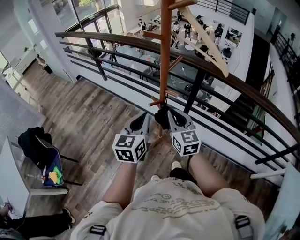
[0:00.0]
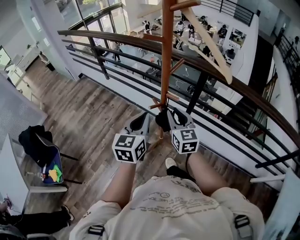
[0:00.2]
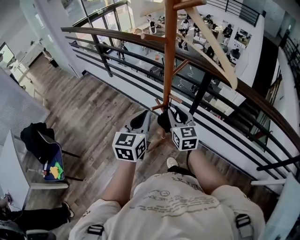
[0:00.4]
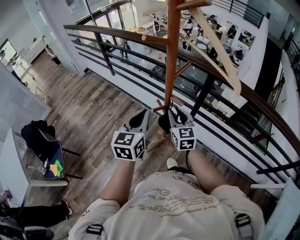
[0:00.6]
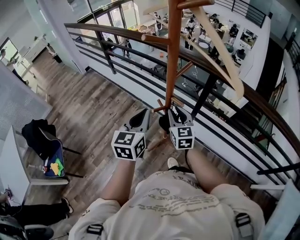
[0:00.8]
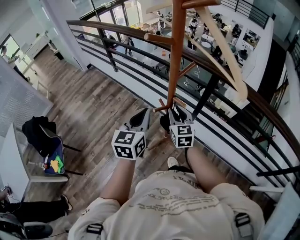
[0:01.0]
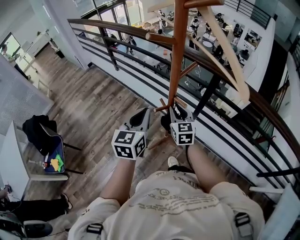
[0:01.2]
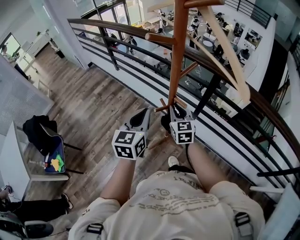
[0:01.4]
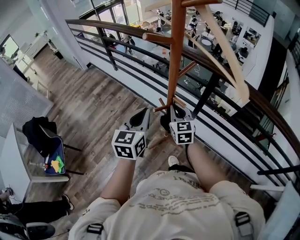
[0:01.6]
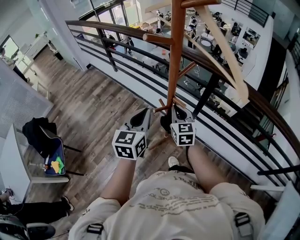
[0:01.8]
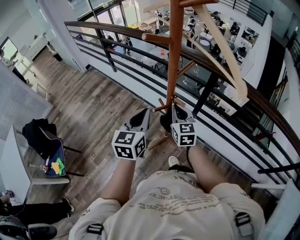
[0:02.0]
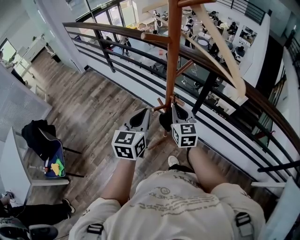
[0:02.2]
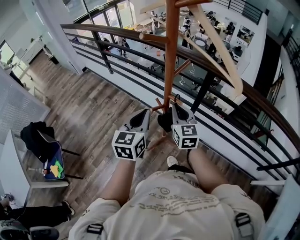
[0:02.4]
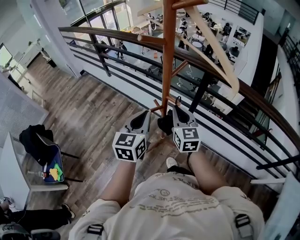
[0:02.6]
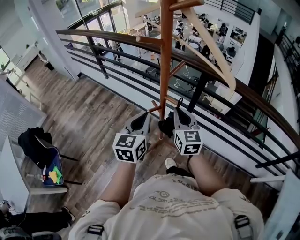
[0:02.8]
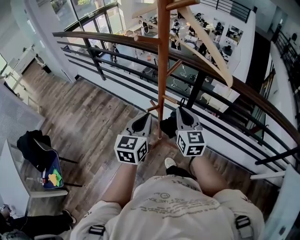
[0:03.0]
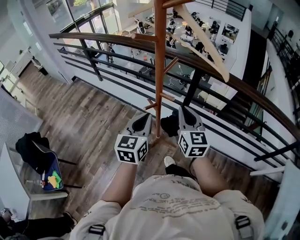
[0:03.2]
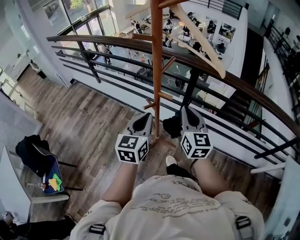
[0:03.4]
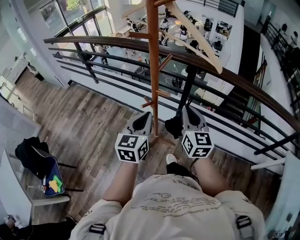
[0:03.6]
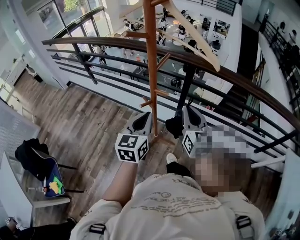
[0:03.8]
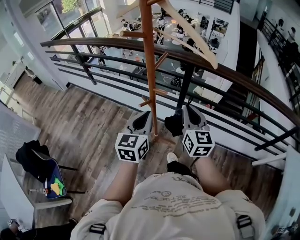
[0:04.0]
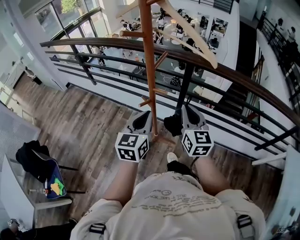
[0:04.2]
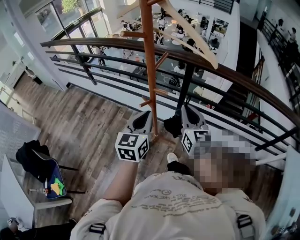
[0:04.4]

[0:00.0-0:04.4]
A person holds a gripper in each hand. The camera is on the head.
0:00.0 to 0:01.4: The left gripper travels forward by approximately 5 cm. Meanwhile the right gripper is displaced forward and downward by some 15 cm.
0:01.4 to 0:03.0: The right gripper moves upward and backward, approximately 10 cm.
0:03.0 to 0:04.4: The right gripper moves to the right, about 5 cm.

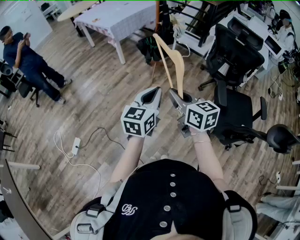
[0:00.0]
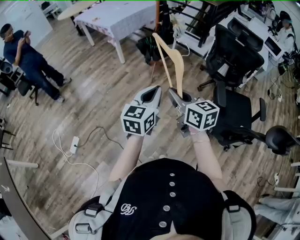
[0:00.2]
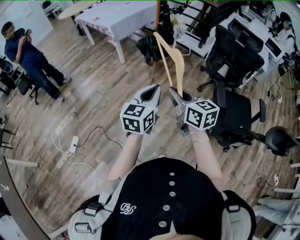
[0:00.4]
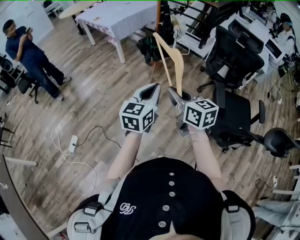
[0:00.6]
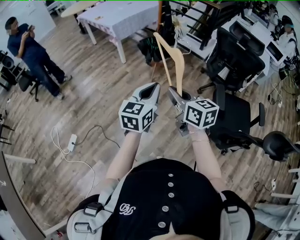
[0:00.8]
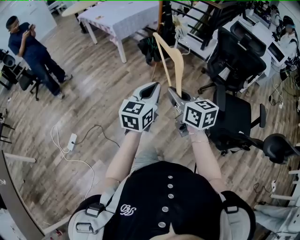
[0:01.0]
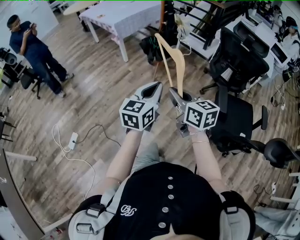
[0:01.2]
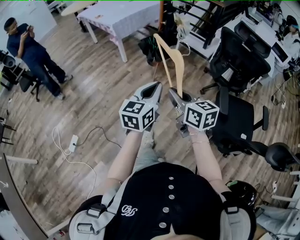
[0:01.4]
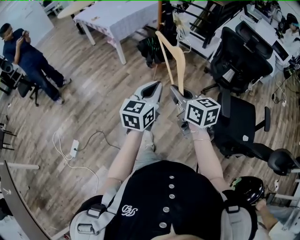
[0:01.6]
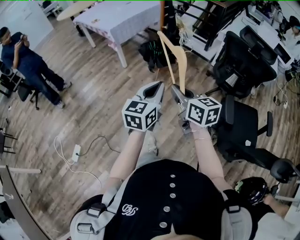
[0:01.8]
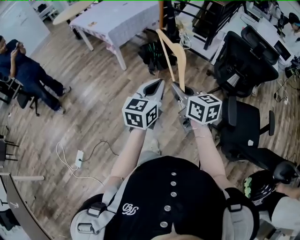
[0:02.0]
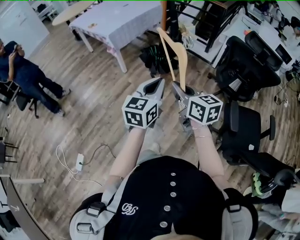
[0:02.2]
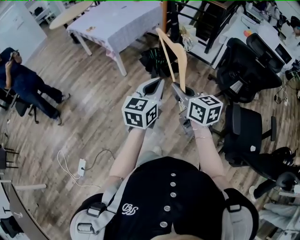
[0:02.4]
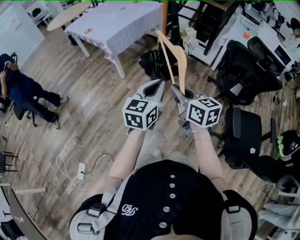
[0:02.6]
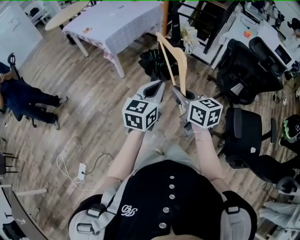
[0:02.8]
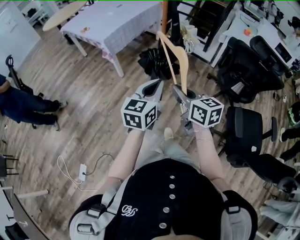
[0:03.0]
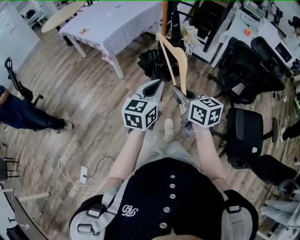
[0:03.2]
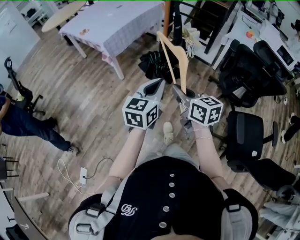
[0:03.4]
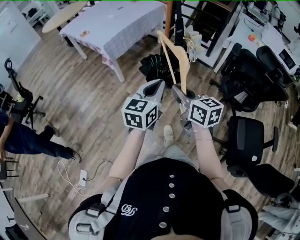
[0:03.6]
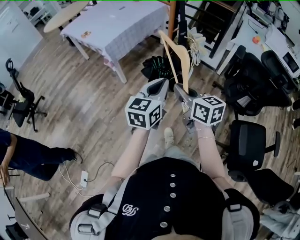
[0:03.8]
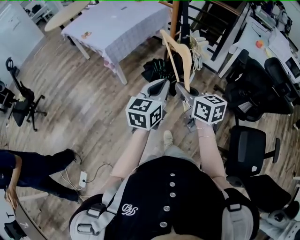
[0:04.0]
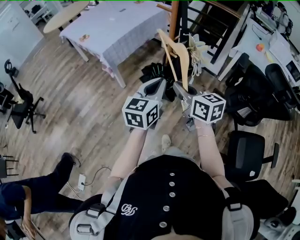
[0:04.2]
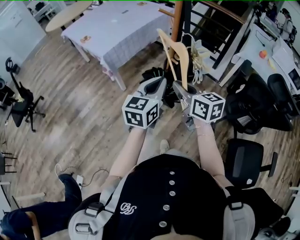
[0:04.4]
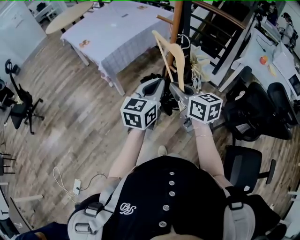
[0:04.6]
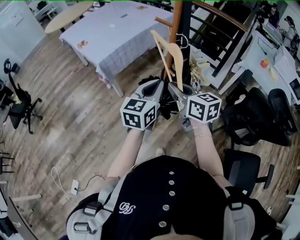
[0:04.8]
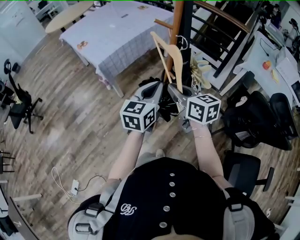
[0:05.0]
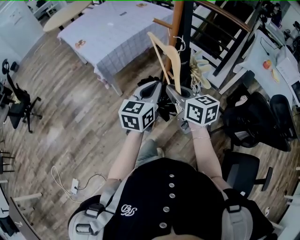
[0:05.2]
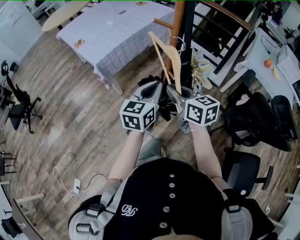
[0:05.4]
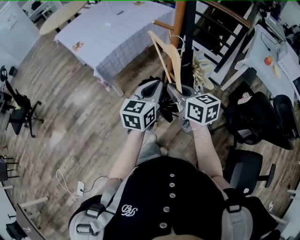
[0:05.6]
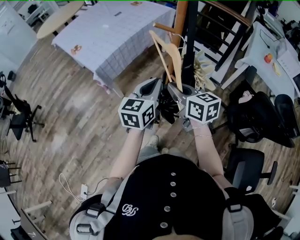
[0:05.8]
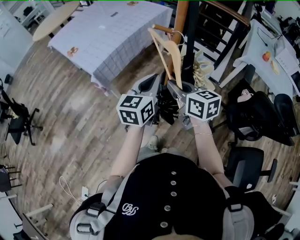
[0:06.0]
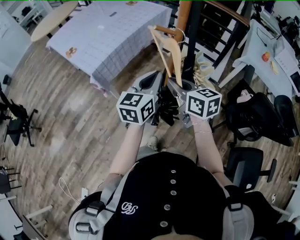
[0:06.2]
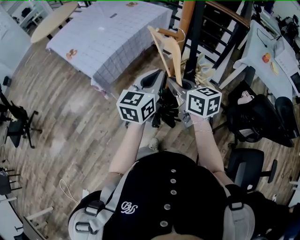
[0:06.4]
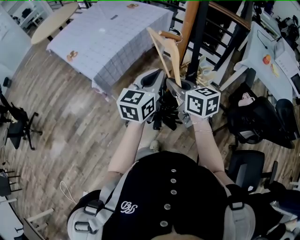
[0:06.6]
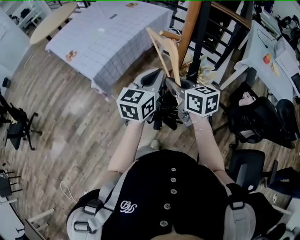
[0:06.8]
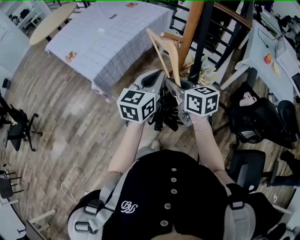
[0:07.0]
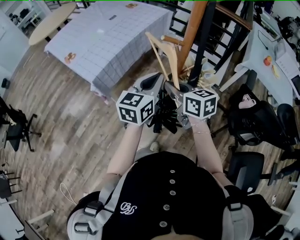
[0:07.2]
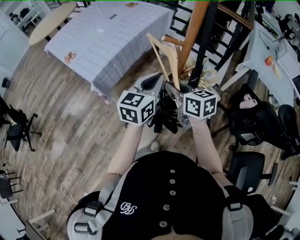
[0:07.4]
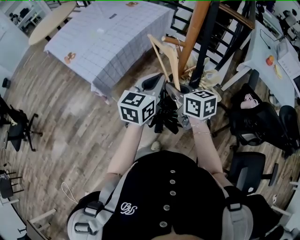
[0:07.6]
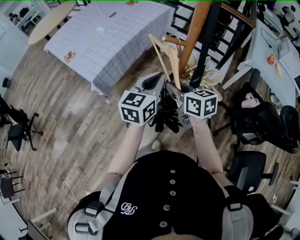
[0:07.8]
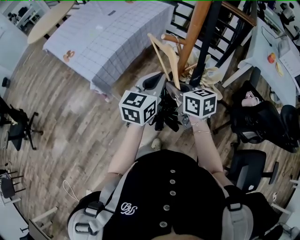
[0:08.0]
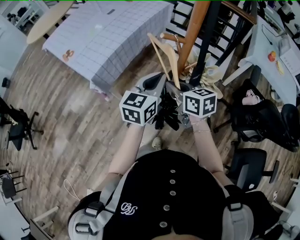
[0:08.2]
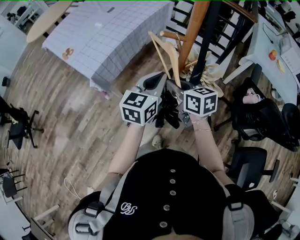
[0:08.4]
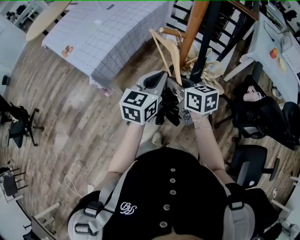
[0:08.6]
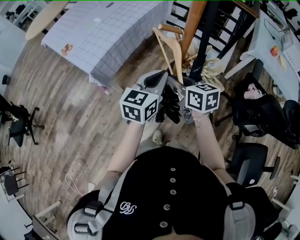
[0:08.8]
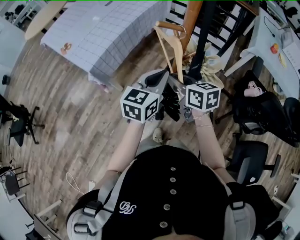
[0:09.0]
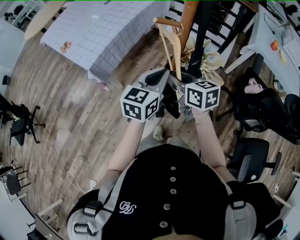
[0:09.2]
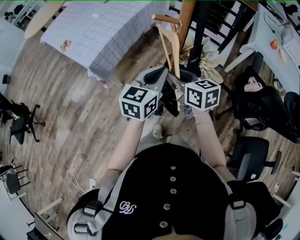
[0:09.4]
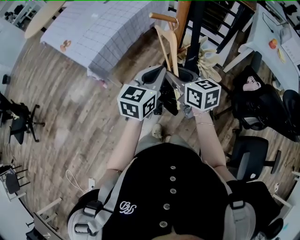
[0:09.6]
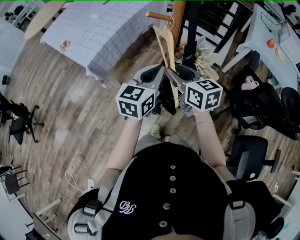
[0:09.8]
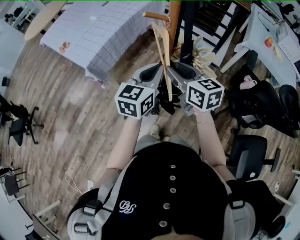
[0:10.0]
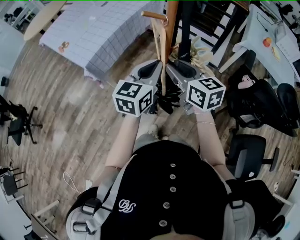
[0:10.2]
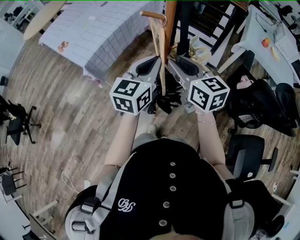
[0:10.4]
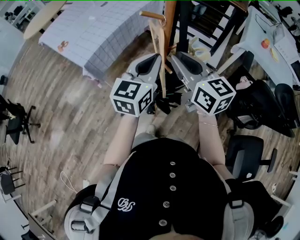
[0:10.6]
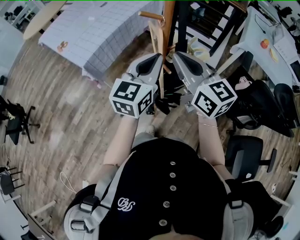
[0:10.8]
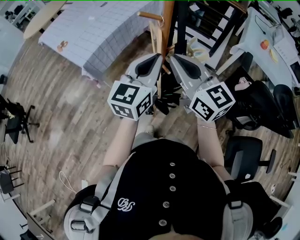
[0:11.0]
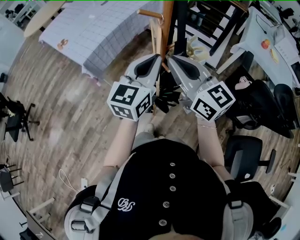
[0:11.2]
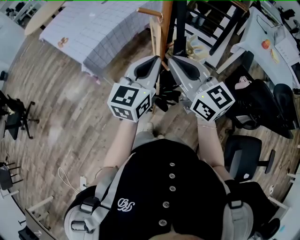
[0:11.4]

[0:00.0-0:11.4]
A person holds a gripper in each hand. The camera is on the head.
0:00.0 to 0:01.4: The grippers both shift forward by some 5 cm.
0:01.4 to 0:02.8: Both grippers move forward, some 25 cm.
0:02.8 to 0:04.2: Both grippers travel together forward, some 20 cm.
0:04.2 to 0:05.6: The two grippers go about 15 cm forward.
0:05.6 to 0:07.2: The grippers both shift forward by about 10 cm.
0:07.2 to 0:08.6: The grippers make only small movements.
0:08.6 to 0:10.0: The left gripper ends up about 5 cm from where it was. The right gripper changes place by roughly 10 cm, and opens its fingers.
0:10.0 to 0:11.4: The right gripper is displaced upward and backward by roughly 10 cm, swivels approximately 20 degrees, and closes up; the left gripper goes roughly 5 cm upward.

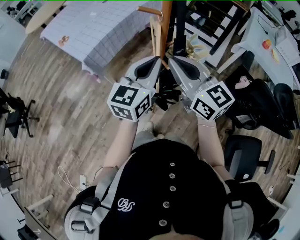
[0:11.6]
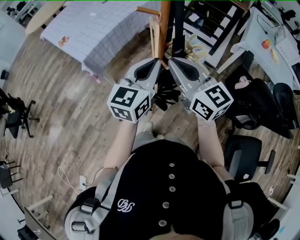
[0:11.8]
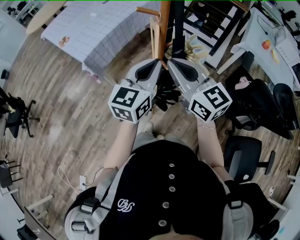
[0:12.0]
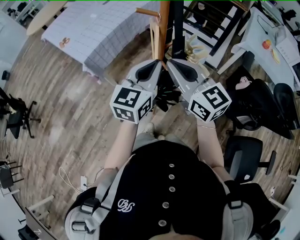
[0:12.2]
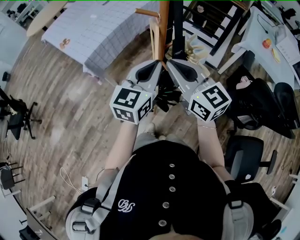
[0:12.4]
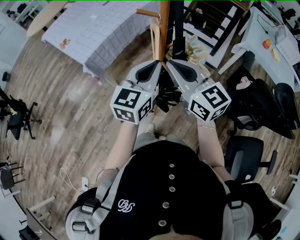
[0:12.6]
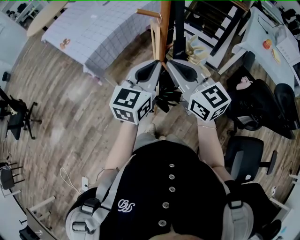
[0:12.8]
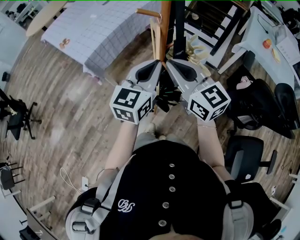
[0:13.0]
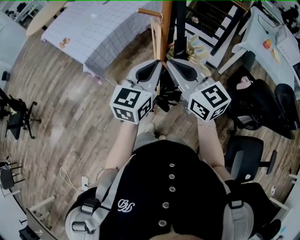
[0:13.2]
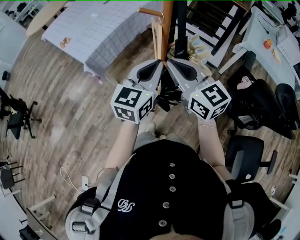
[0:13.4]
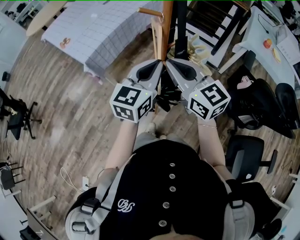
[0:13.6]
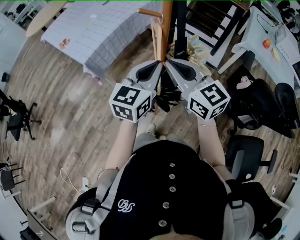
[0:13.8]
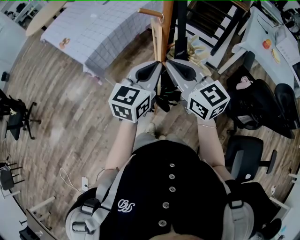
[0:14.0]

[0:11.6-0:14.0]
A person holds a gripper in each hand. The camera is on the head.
0:11.6 to 0:12.8: The grippers make only small movements.
0:12.8 to 0:14.0: Both grippers stay about where they are.

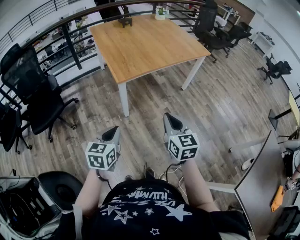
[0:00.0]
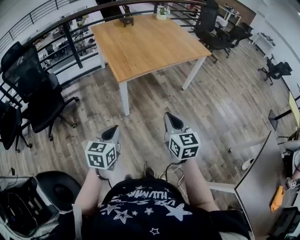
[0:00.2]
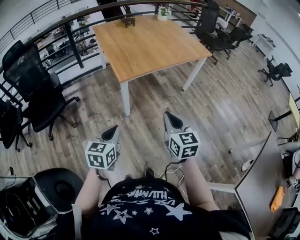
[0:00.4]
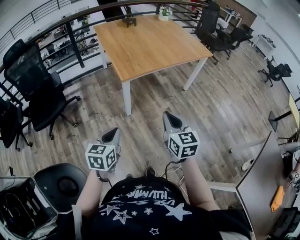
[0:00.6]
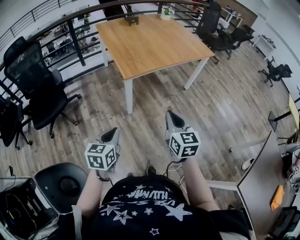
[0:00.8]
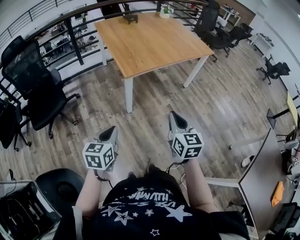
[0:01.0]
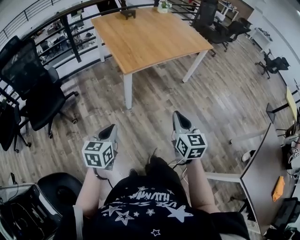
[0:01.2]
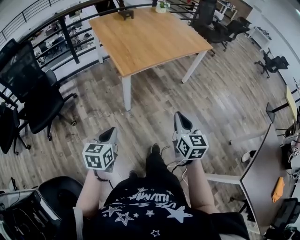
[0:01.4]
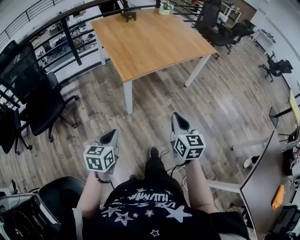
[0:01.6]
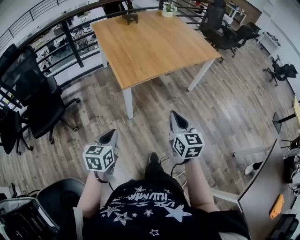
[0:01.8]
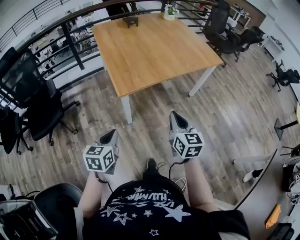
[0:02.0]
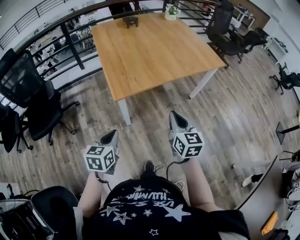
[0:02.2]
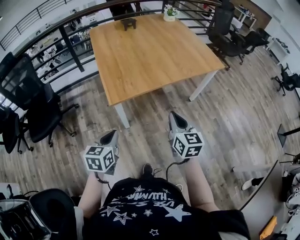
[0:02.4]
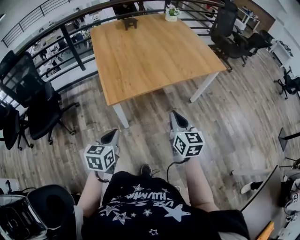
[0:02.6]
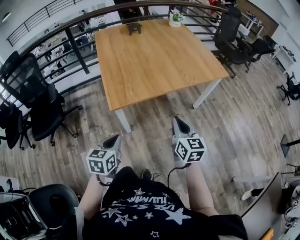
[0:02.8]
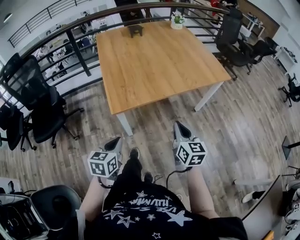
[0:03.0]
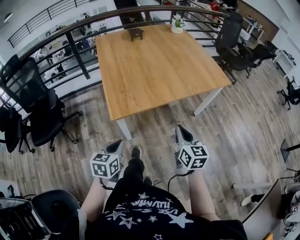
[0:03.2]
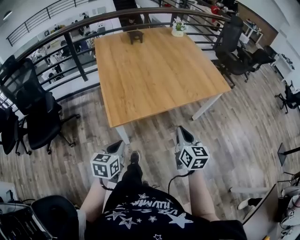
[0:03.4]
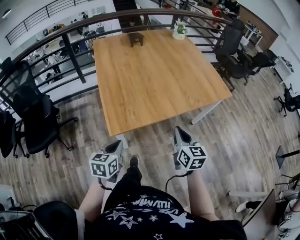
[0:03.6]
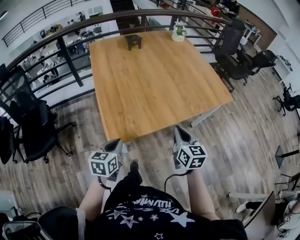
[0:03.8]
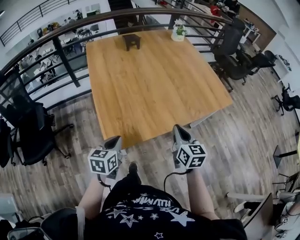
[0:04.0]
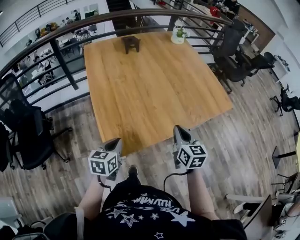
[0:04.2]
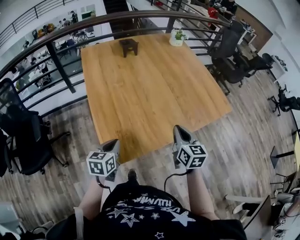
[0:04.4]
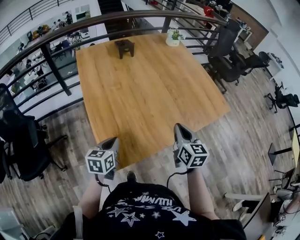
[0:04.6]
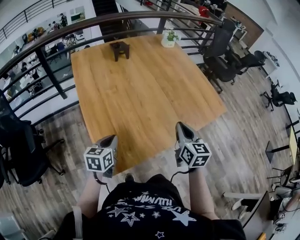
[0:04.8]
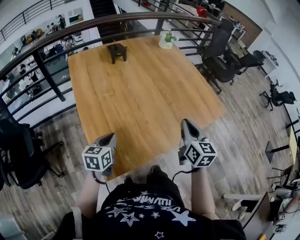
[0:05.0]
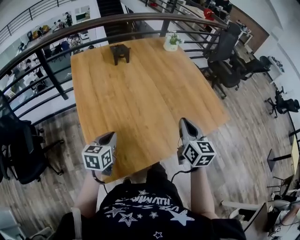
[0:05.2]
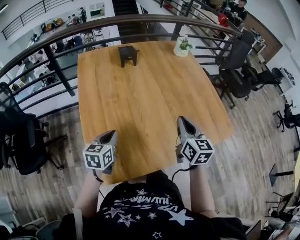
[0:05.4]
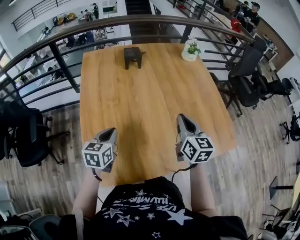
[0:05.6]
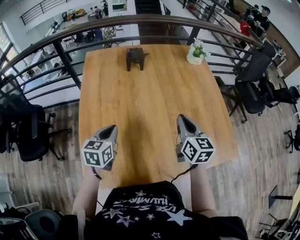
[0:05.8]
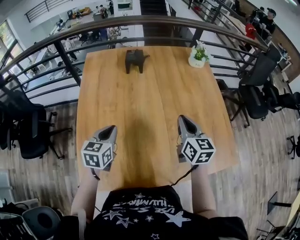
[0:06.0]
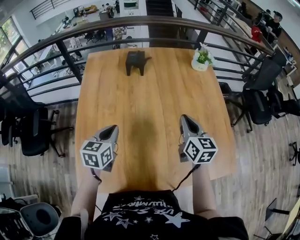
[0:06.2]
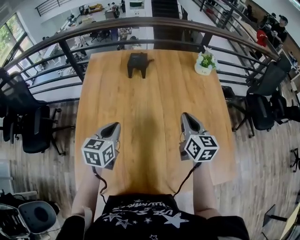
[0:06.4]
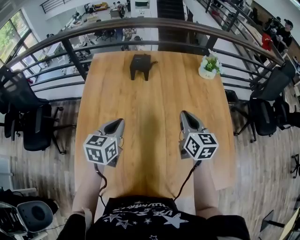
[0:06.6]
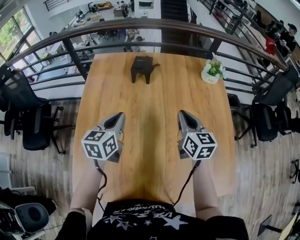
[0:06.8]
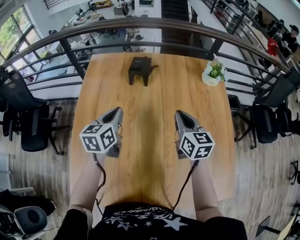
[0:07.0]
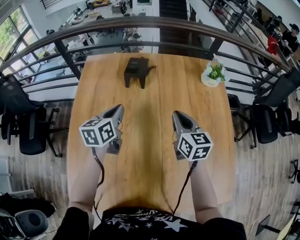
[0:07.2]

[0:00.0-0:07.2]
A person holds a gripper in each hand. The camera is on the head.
0:00.0 to 0:01.4: The left gripper shifts some 5 cm to the left.
0:01.4 to 0:02.8: The two grippers go approximately 25 cm forward and to the right.
0:02.8 to 0:04.4: The two grippers go about 30 cm forward.
0:04.4 to 0:05.8: Both grippers move forward, roughly 25 cm.
0:05.8 to 0:07.2: Both grippers move forward, roughly 25 cm.
